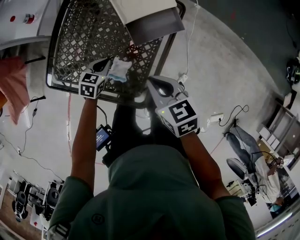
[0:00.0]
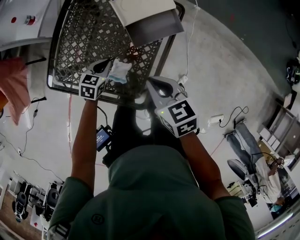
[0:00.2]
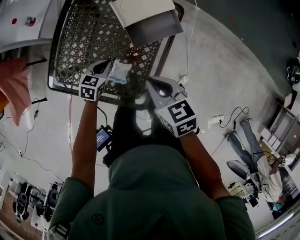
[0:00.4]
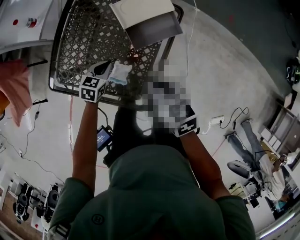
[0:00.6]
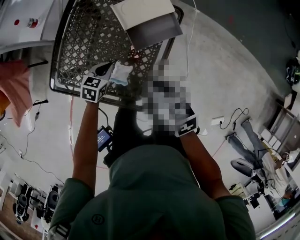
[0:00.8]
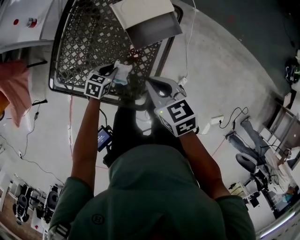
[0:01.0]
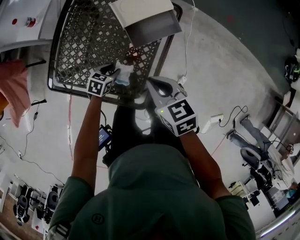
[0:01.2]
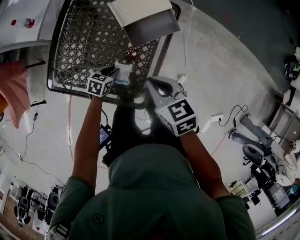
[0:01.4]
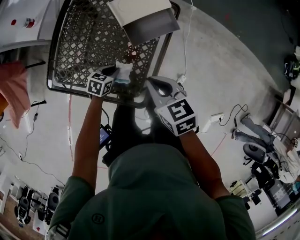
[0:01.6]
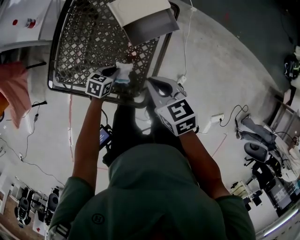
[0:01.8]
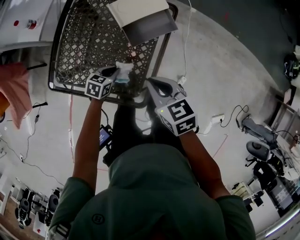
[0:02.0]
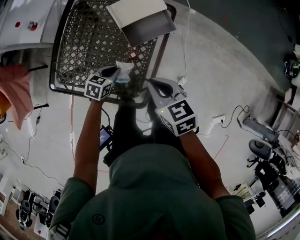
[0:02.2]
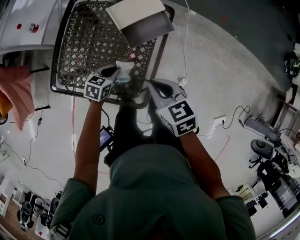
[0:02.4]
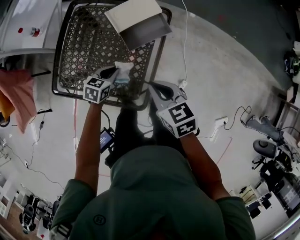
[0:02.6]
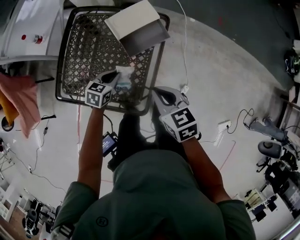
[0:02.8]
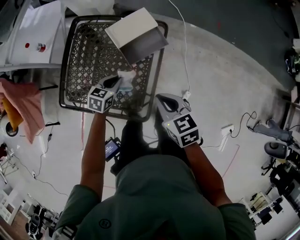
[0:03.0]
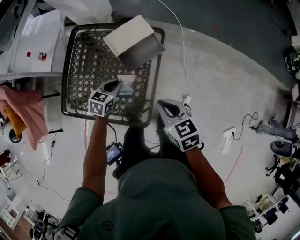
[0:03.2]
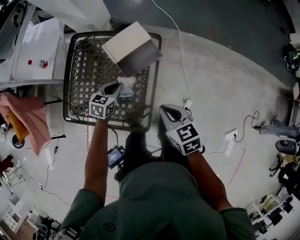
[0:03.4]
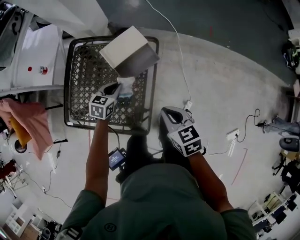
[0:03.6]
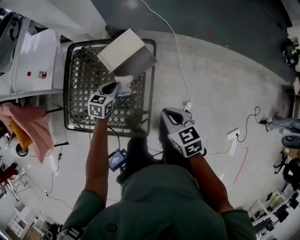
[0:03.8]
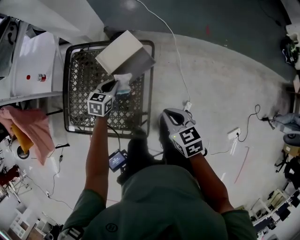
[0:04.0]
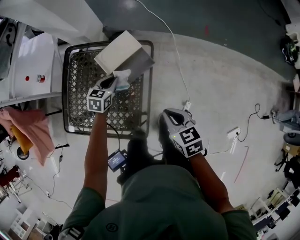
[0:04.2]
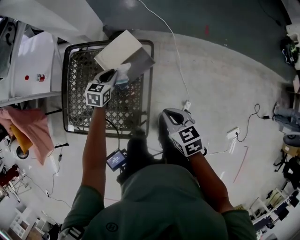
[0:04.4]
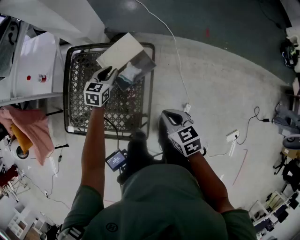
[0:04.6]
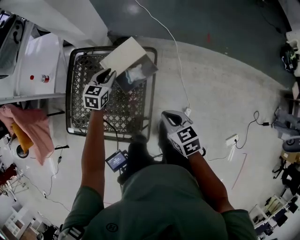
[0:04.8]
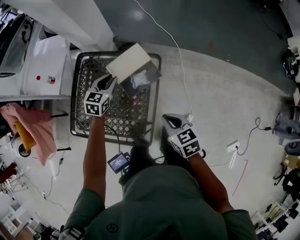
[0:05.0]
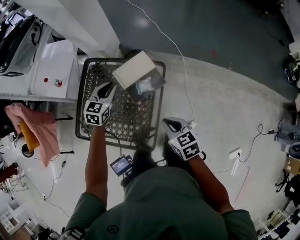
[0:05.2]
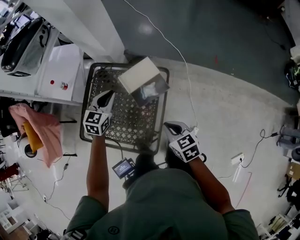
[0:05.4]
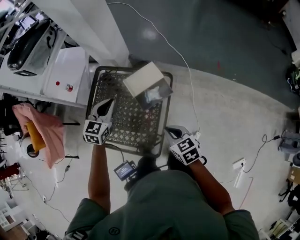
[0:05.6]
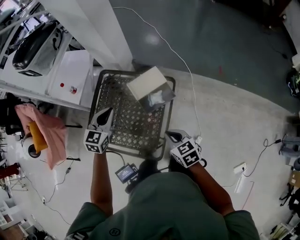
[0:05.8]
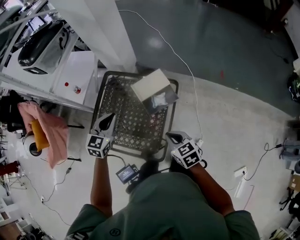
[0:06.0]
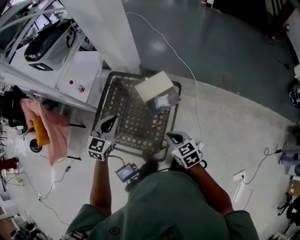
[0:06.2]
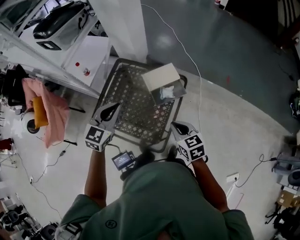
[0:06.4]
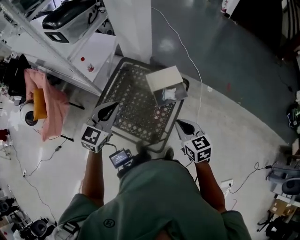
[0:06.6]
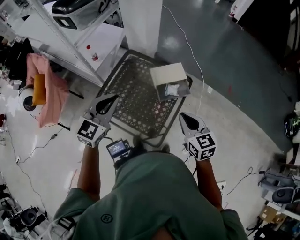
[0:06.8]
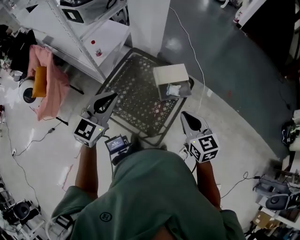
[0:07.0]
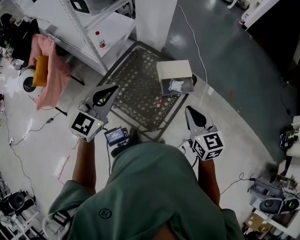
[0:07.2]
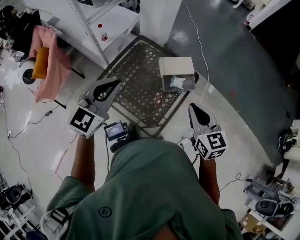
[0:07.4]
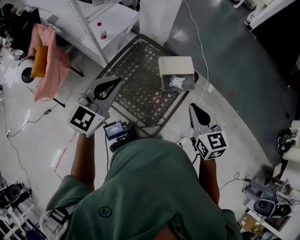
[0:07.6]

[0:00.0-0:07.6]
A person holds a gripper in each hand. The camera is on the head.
0:00.0 to 0:01.6: The left gripper shifts by approximately 5 cm, and opens and closes again.
0:01.6 to 0:03.0: The right gripper travels to the right by about 5 cm. Meanwhile the left gripper heads upward, covering some 10 cm.
0:03.0 to 0:04.6: The left gripper travels forward by some 15 cm, while the right gripper goes some 10 cm to the right.
0:04.6 to 0:06.0: The left gripper travels upward, to the left and backward by roughly 30 cm, and closes its fingers. The right gripper goes about 10 cm to the left and upward.
0:06.0 to 0:07.6: The left gripper is displaced upward, backward and to the left by some 20 cm; the right gripper goes about 15 cm upward, and changes its angle by roughly 20 degrees.

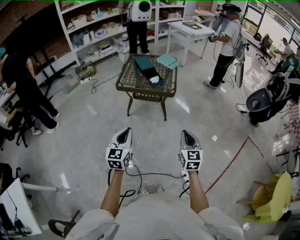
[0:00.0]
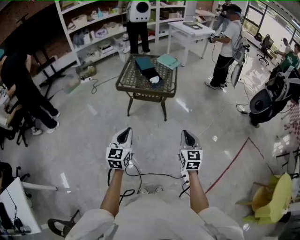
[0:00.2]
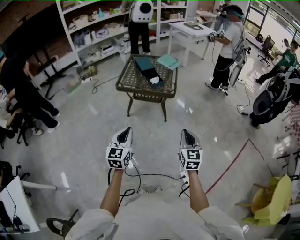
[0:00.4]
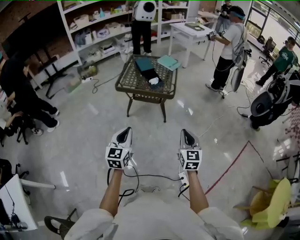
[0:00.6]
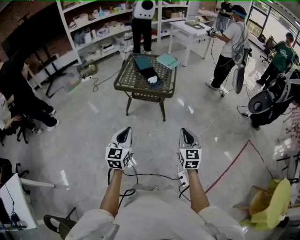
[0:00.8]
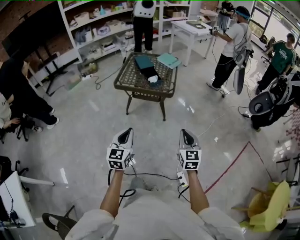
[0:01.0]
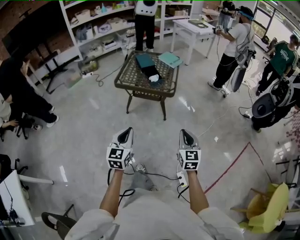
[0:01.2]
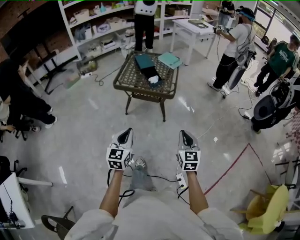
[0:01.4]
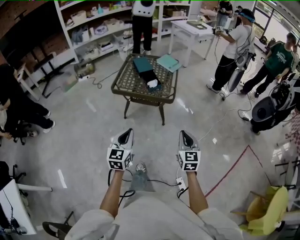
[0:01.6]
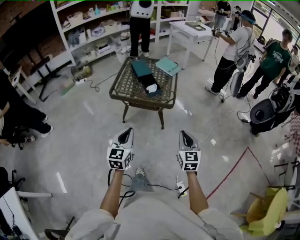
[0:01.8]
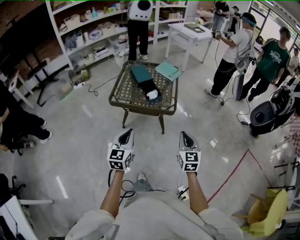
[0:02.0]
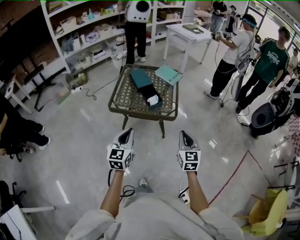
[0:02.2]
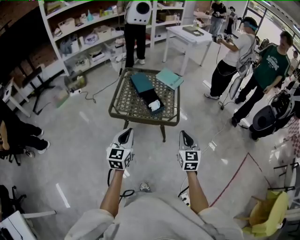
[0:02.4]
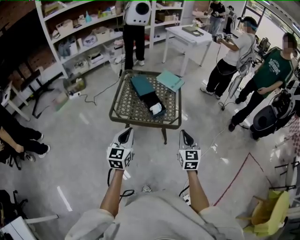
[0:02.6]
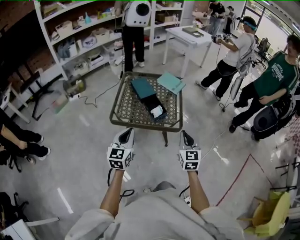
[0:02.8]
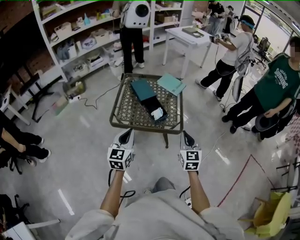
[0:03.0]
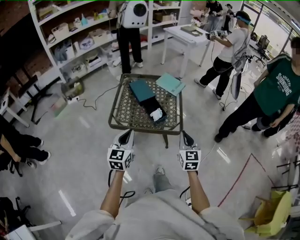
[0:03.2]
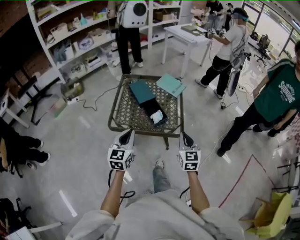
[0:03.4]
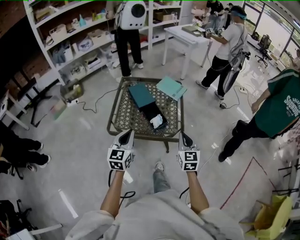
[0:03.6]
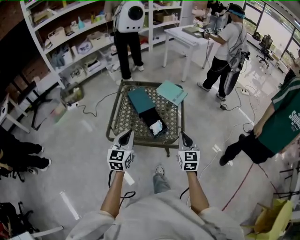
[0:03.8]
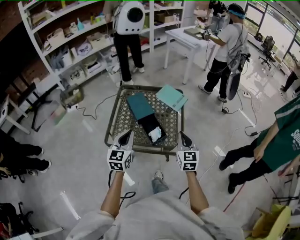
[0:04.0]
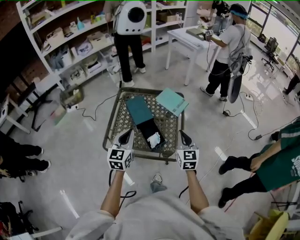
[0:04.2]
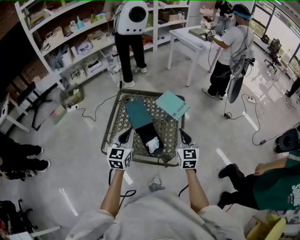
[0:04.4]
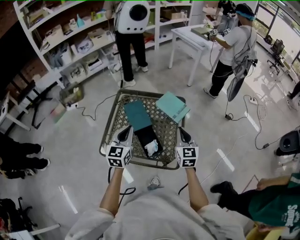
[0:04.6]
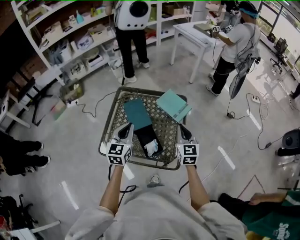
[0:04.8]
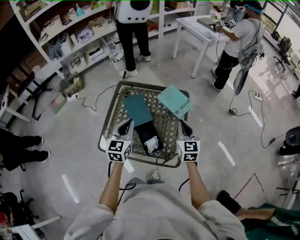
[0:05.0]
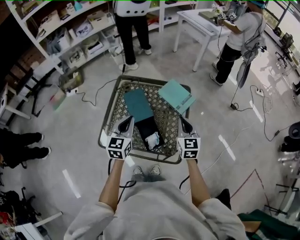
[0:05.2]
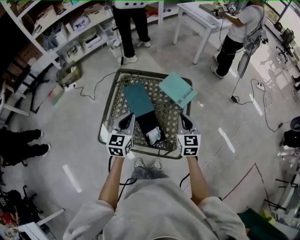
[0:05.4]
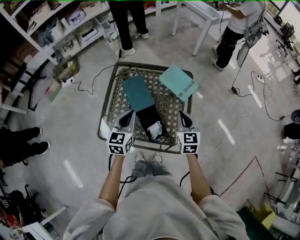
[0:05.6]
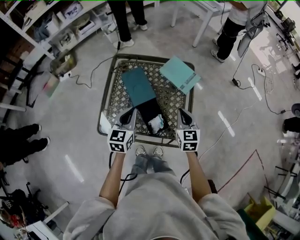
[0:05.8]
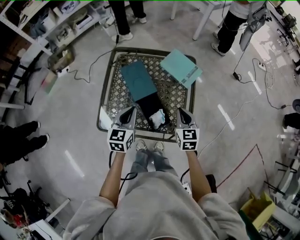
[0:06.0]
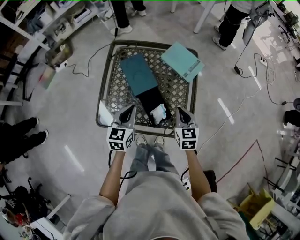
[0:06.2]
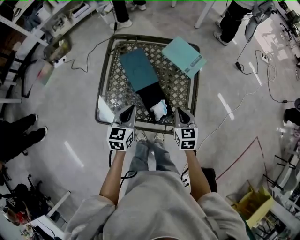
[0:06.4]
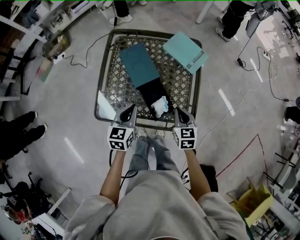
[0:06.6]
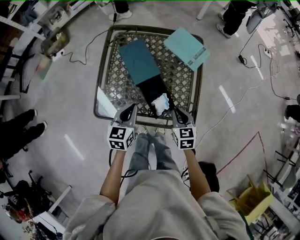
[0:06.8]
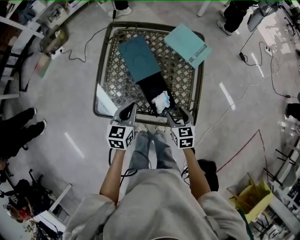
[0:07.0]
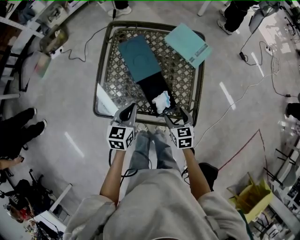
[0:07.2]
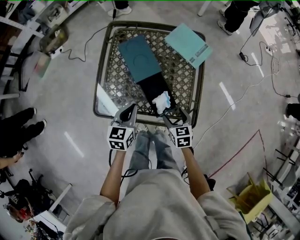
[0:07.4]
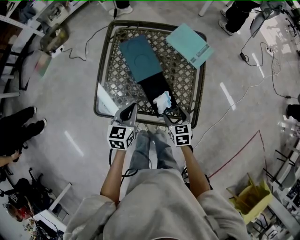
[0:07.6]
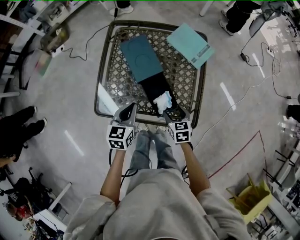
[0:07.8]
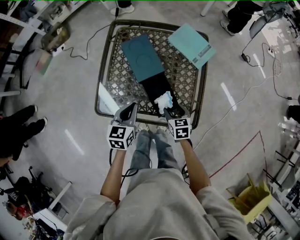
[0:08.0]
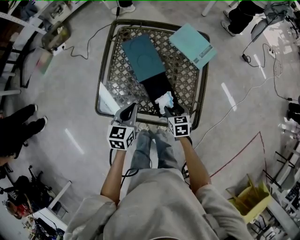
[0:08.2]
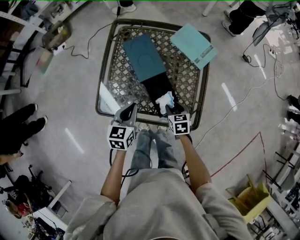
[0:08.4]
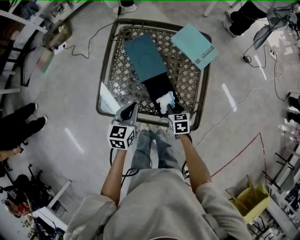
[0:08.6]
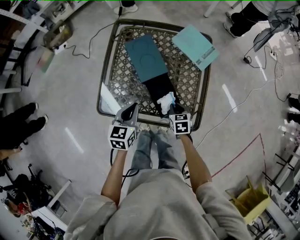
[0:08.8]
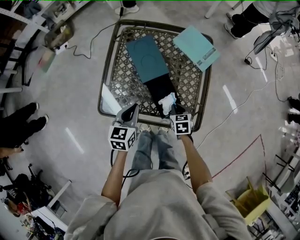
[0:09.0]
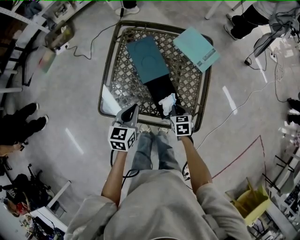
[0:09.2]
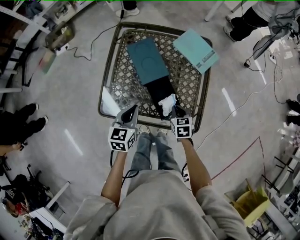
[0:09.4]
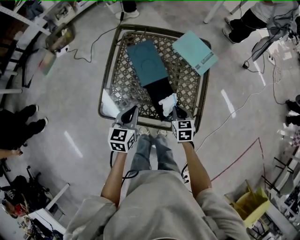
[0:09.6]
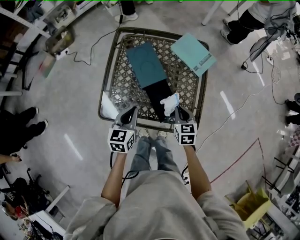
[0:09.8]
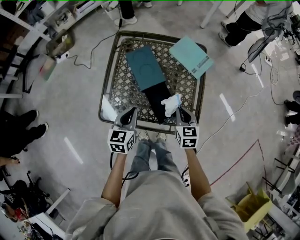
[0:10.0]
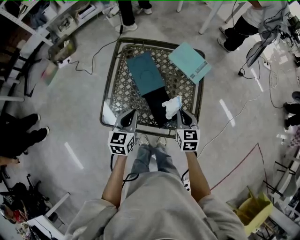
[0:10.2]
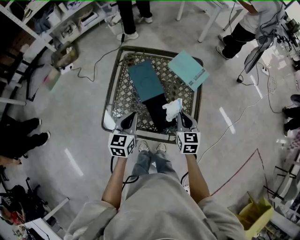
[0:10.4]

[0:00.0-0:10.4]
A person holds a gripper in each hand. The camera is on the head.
0:00.0 to 0:01.4: The right gripper goes about 5 cm forward, while the left gripper changes place by some 5 cm.
0:01.4 to 0:03.0: Both grippers move forward, about 35 cm.
0:03.0 to 0:04.4: Both grippers travel together forward, roughly 30 cm.
0:04.4 to 0:06.0: Both grippers move downward, about 15 cm.
0:06.0 to 0:07.4: The left gripper moves downward, some 10 cm. The right gripper goes some 15 cm downward and backward, swivels roughly 20 degrees, and opens its fingers.
0:07.4 to 0:09.0: The right gripper shifts approximately 5 cm downward, and closes.
0:09.0 to 0:10.4: The right gripper moves upward, some 20 cm, and rotates roughly 20 degrees; the left gripper shifts approximately 5 cm upward.

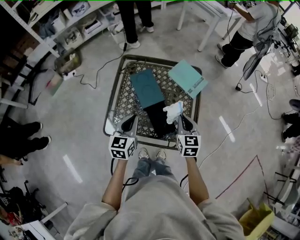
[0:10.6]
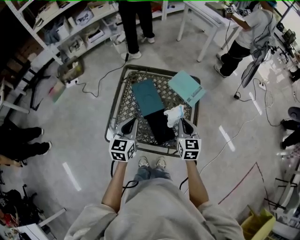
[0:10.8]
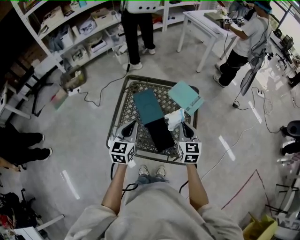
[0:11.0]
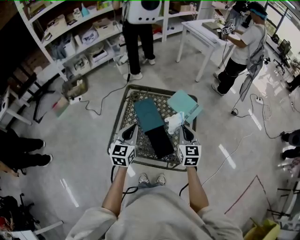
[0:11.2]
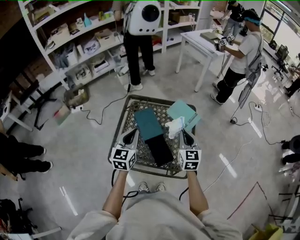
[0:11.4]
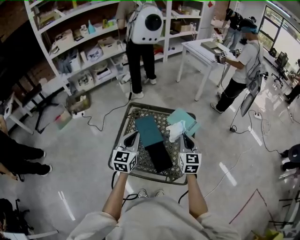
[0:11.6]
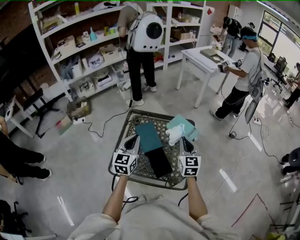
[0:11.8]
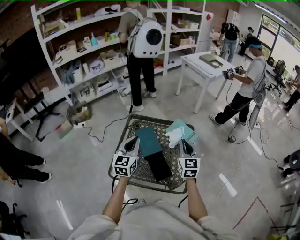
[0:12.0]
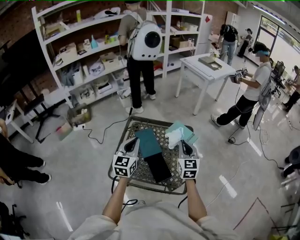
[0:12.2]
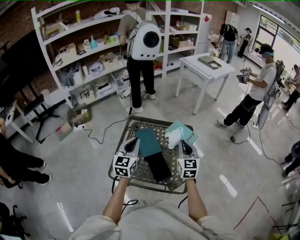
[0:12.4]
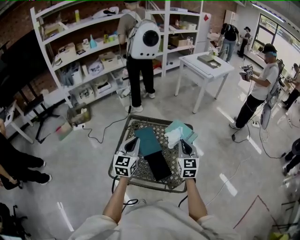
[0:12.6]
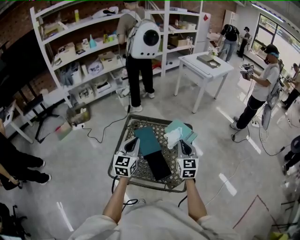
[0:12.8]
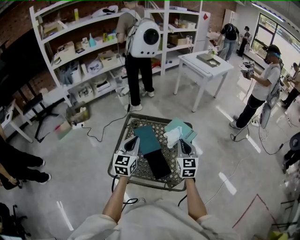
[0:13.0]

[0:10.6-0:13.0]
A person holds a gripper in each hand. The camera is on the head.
0:10.6 to 0:11.8: Both grippers move upward, some 15 cm.
0:11.8 to 0:13.0: The grippers move only a little.

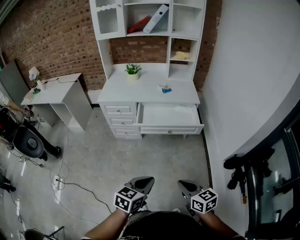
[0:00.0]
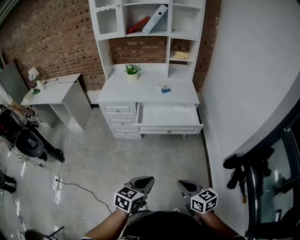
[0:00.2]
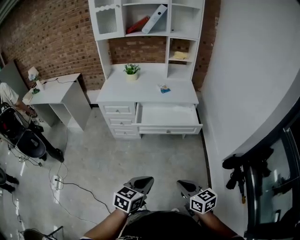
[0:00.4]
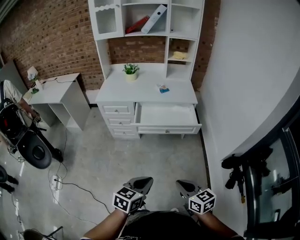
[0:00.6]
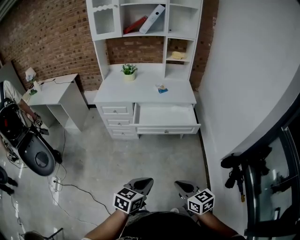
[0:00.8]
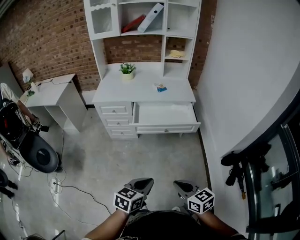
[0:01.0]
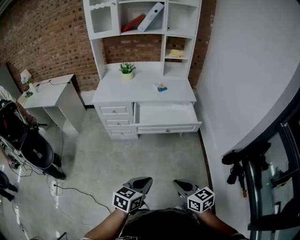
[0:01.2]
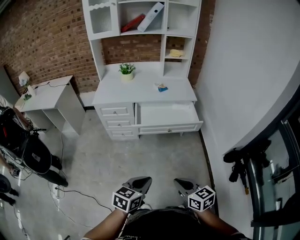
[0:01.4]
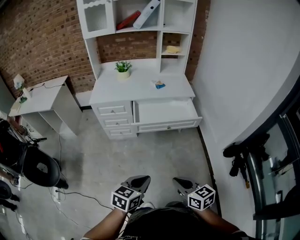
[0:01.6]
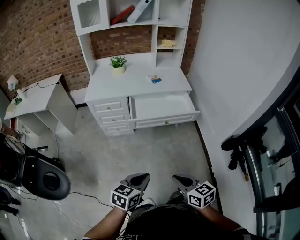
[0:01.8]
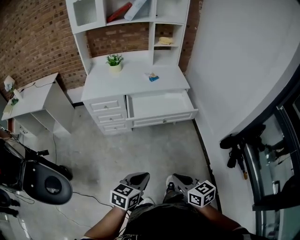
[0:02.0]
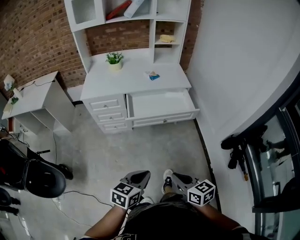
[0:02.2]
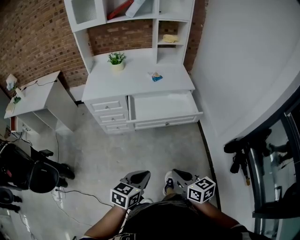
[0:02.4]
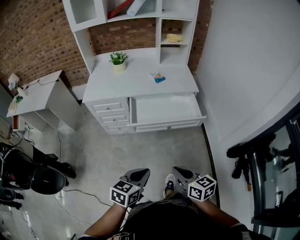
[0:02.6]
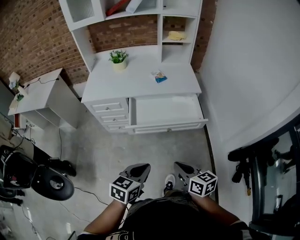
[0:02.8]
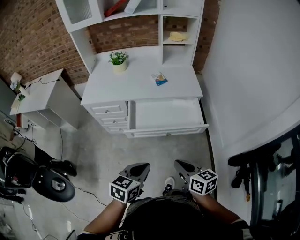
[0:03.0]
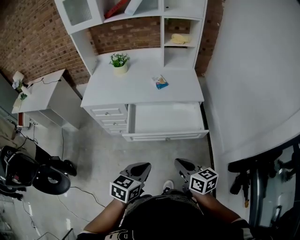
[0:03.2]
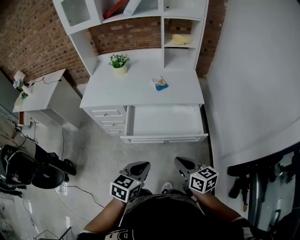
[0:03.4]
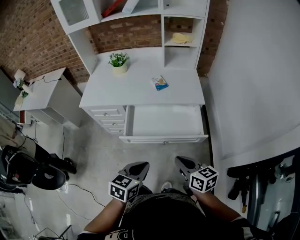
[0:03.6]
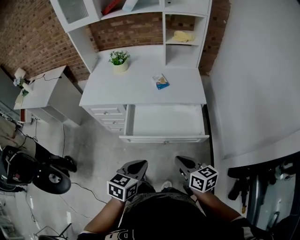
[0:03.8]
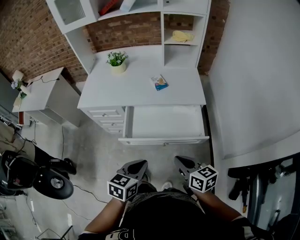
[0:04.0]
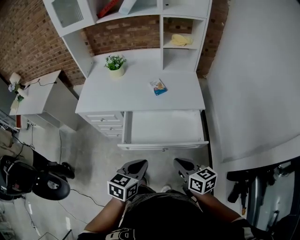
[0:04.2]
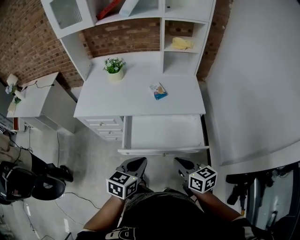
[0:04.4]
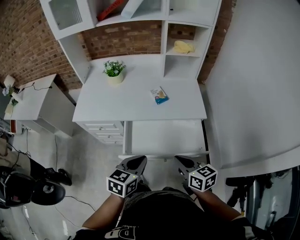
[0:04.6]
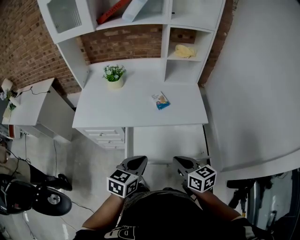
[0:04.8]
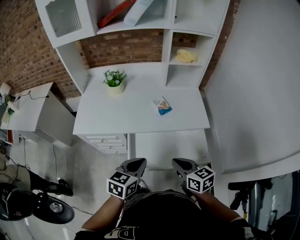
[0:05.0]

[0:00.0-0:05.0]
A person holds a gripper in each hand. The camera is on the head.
0:00.0 to 0:01.6: Both grippers move to the left, about 10 cm.
0:01.6 to 0:03.4: The grippers both shift forward by some 30 cm.
0:03.4 to 0:05.0: The grippers both shift forward by about 20 cm.
